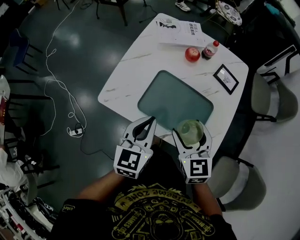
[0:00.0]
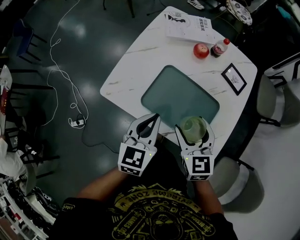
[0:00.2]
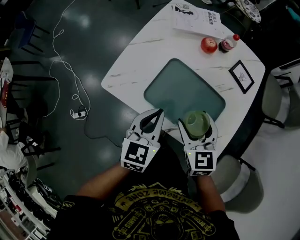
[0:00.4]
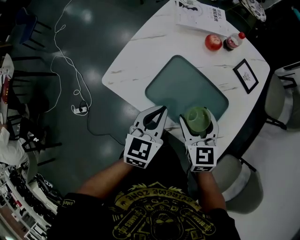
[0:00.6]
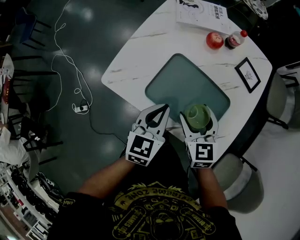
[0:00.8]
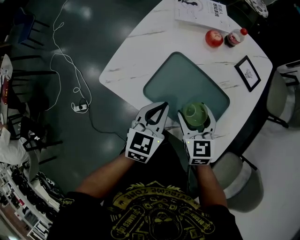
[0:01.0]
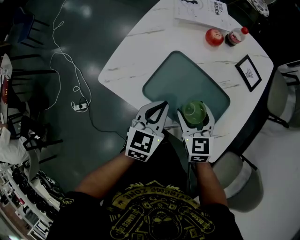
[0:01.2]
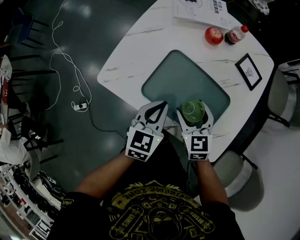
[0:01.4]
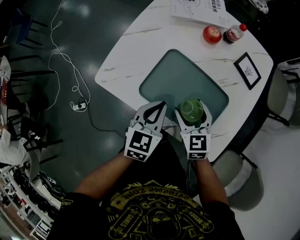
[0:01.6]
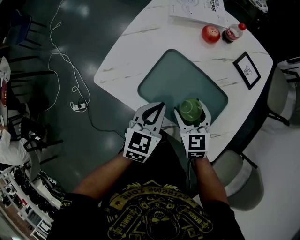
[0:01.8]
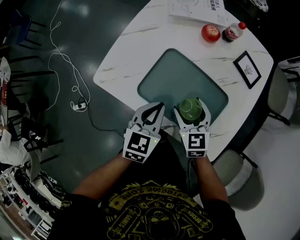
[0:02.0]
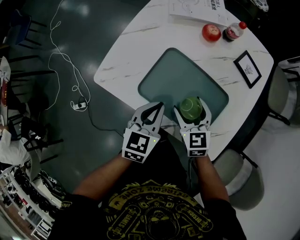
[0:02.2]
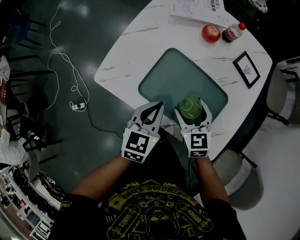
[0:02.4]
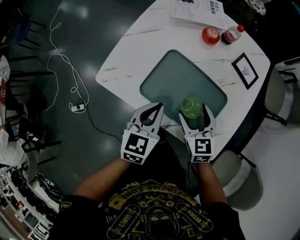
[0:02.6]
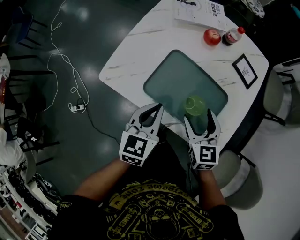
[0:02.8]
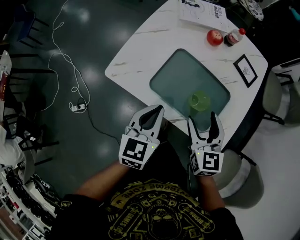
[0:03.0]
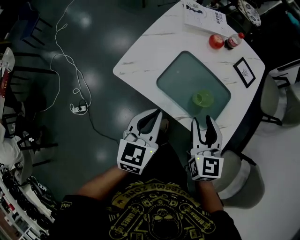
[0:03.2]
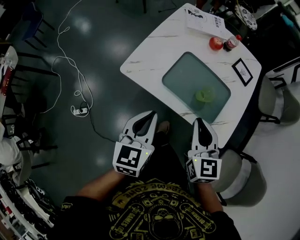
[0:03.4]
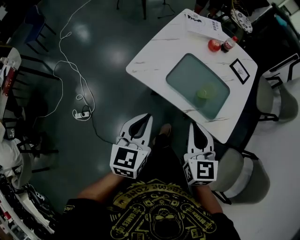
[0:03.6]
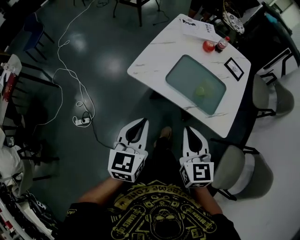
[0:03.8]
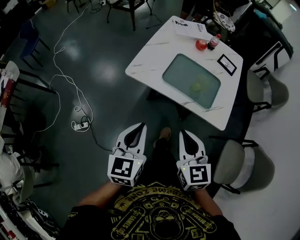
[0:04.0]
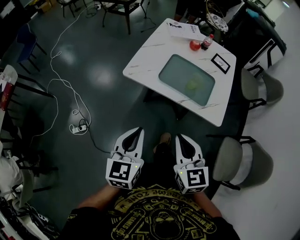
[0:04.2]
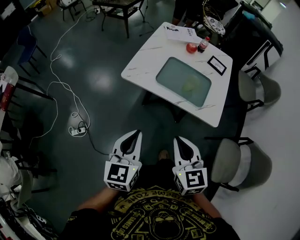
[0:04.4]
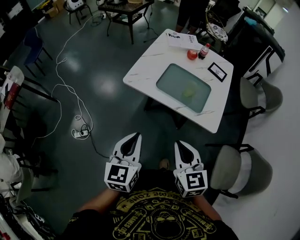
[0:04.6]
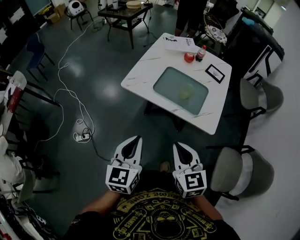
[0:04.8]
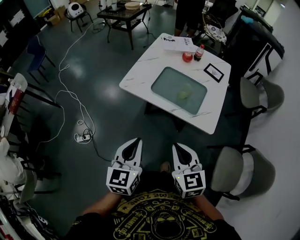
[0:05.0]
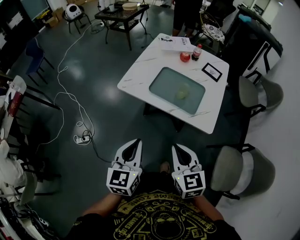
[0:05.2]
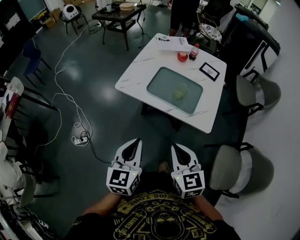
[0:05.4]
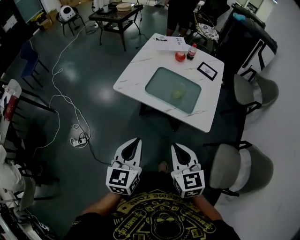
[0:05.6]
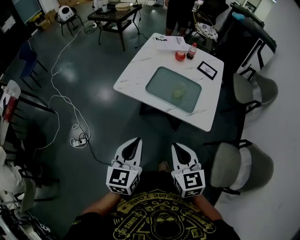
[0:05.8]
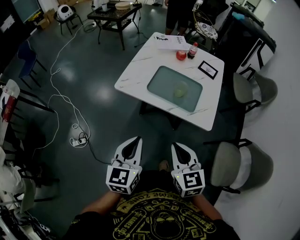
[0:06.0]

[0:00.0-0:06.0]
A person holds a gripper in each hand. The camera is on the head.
0:00.0 to 0:01.6: The grippers both shift downward by approximately 10 cm.
0:01.6 to 0:03.0: The grippers both shift upward and backward by about 10 cm.
0:03.0 to 0:04.4: The right gripper shifts about 30 cm backward and to the left, and closes up, while the left gripper travels backward, to the left and upward by about 30 cm.

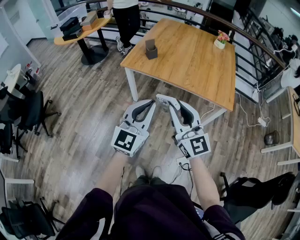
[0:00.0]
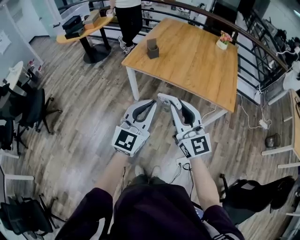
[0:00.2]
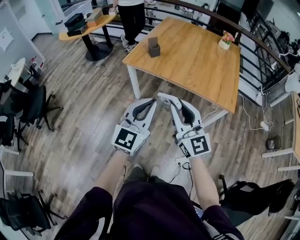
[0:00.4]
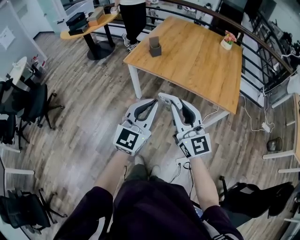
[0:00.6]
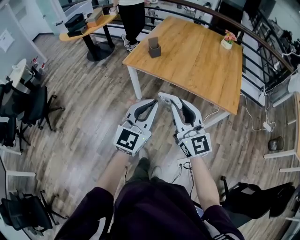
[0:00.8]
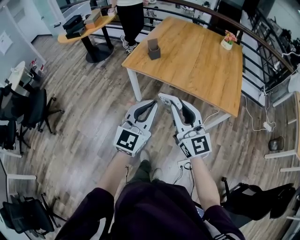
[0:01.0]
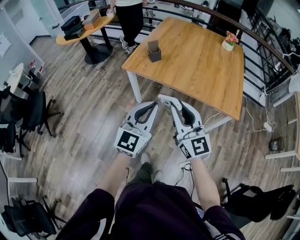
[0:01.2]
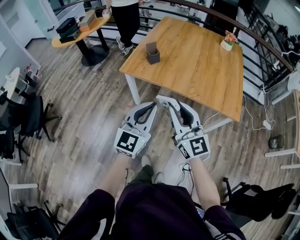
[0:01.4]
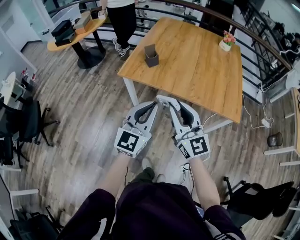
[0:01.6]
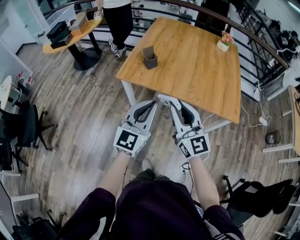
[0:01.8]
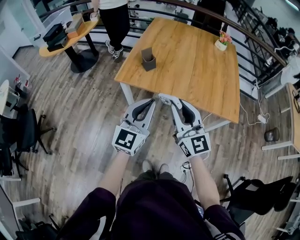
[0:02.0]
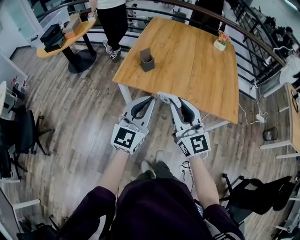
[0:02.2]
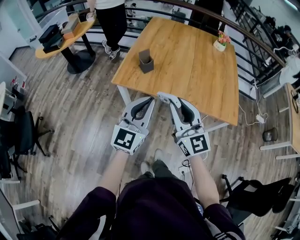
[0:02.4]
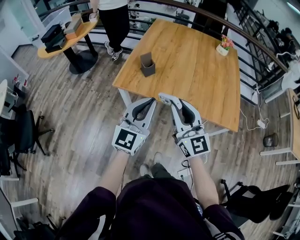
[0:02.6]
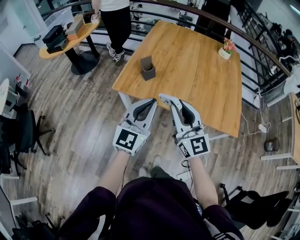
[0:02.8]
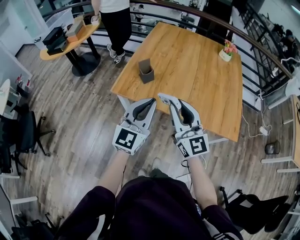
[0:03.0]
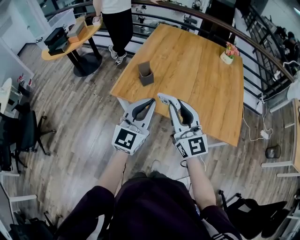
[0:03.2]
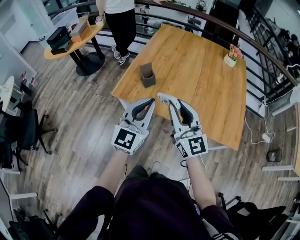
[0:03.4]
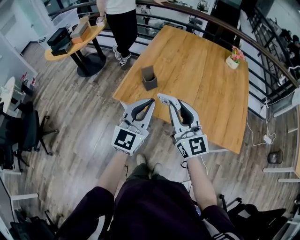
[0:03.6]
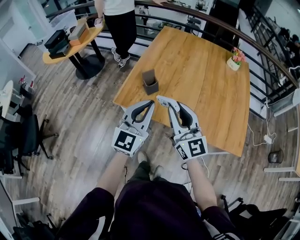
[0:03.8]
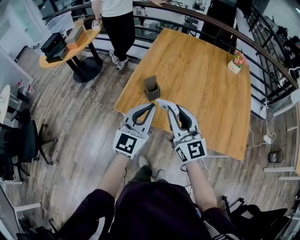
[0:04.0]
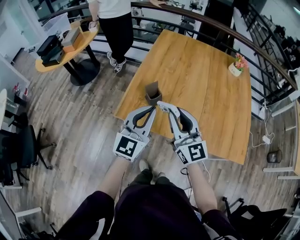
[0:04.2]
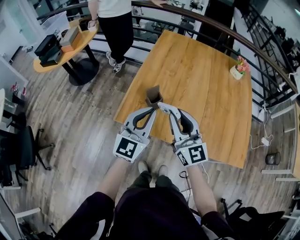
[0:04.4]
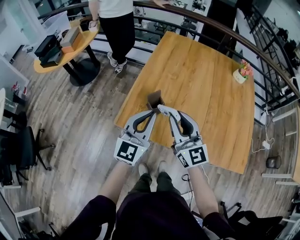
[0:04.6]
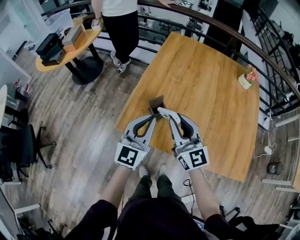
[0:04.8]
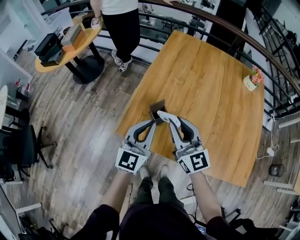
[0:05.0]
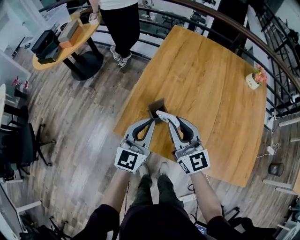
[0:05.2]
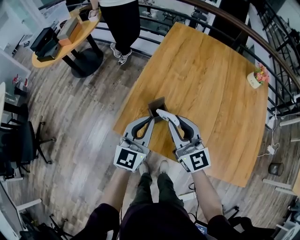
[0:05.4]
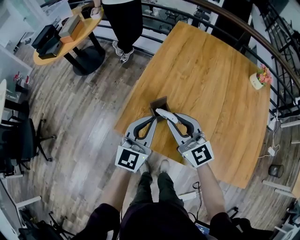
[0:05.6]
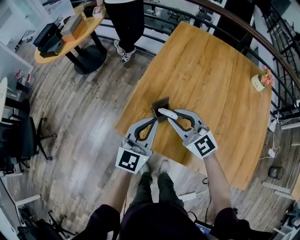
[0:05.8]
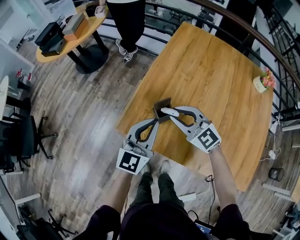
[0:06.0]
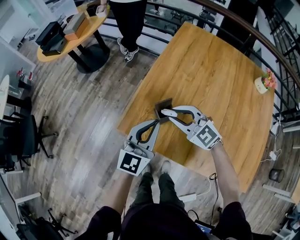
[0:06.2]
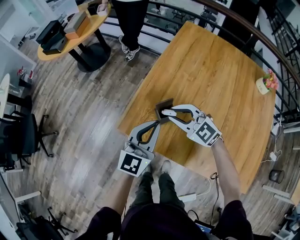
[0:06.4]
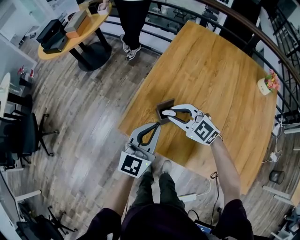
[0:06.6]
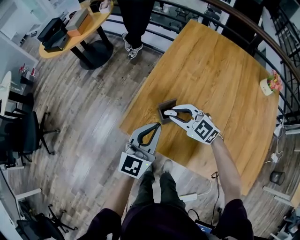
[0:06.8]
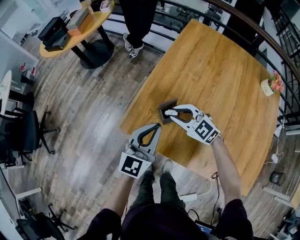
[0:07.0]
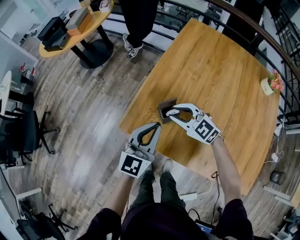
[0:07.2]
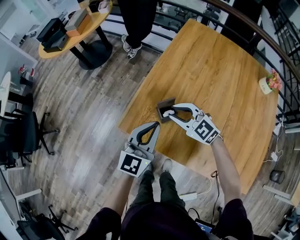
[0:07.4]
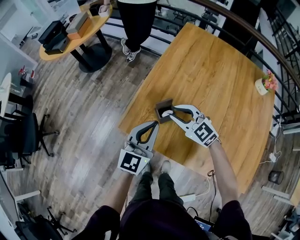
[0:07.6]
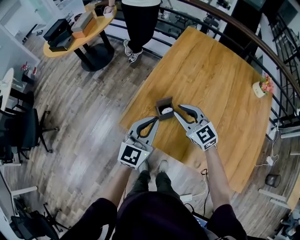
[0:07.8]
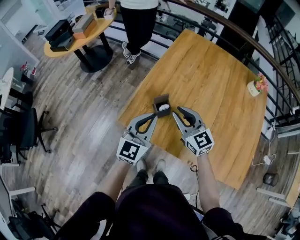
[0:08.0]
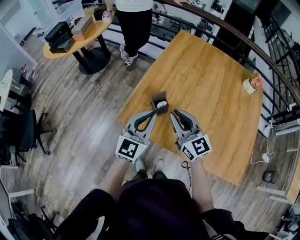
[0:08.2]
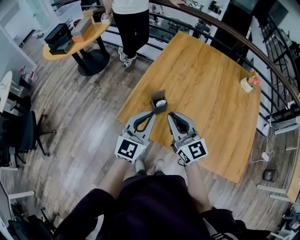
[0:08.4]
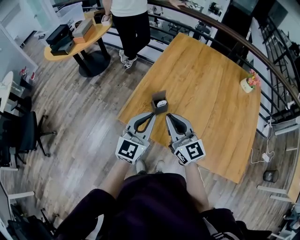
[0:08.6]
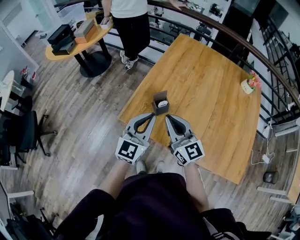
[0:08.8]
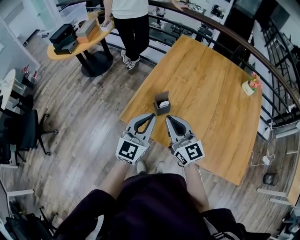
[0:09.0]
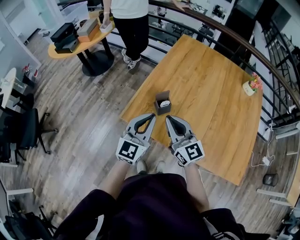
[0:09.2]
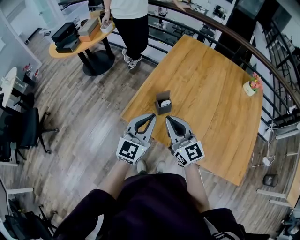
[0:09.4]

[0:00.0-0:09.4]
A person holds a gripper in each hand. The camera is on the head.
0:00.0 to 0:01.6: Both grippers move forward, approximately 15 cm.
0:01.6 to 0:03.2: The two grippers go approximately 20 cm forward.
0:03.2 to 0:04.8: Both grippers travel together forward, some 25 cm.
0:04.8 to 0:06.2: The left gripper is displaced downward by approximately 5 cm, while the right gripper shifts approximately 15 cm downward and forward, and rotates about 50 degrees.
0:06.2 to 0:07.8: The right gripper moves about 5 cm downward and comes back.
0:07.8 to 0:09.4: The left gripper shifts roughly 10 cm backward. Meanwhile the right gripper shifts approximately 15 cm backward and upward, and swivels approximately 30 degrees.

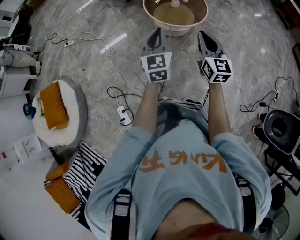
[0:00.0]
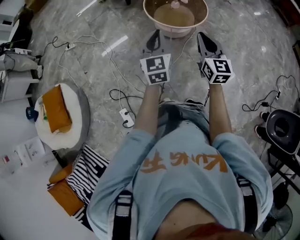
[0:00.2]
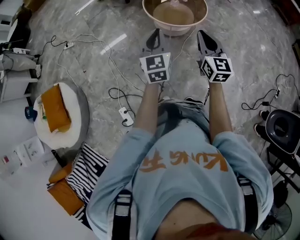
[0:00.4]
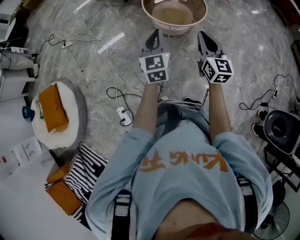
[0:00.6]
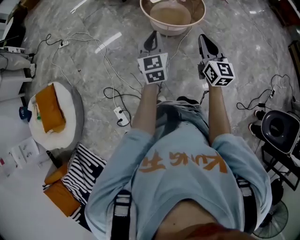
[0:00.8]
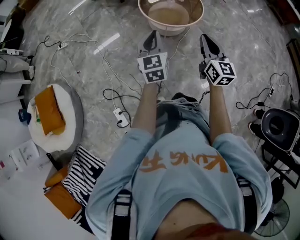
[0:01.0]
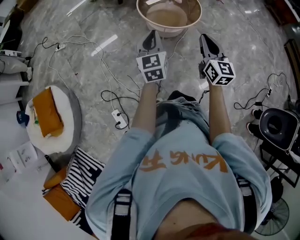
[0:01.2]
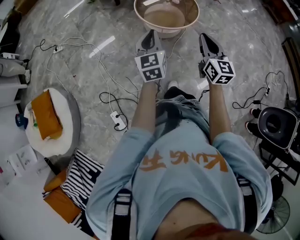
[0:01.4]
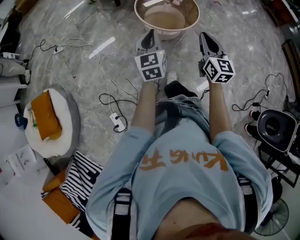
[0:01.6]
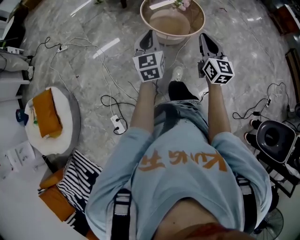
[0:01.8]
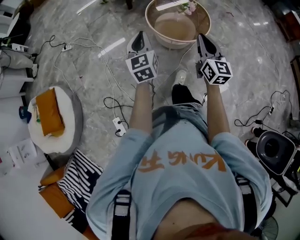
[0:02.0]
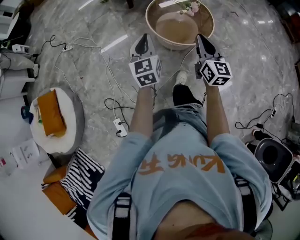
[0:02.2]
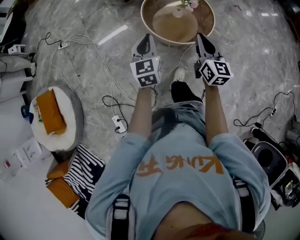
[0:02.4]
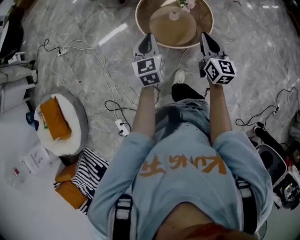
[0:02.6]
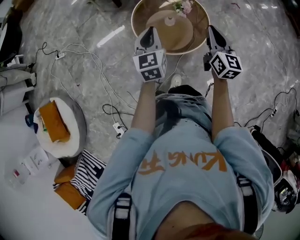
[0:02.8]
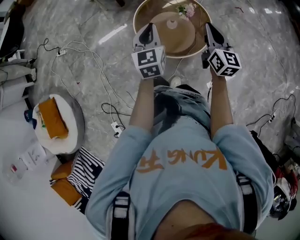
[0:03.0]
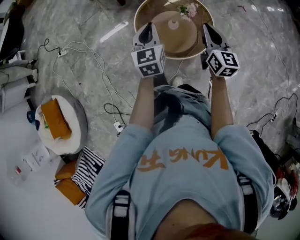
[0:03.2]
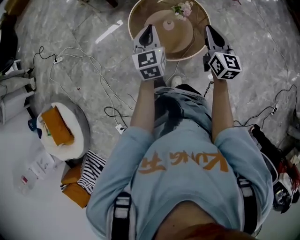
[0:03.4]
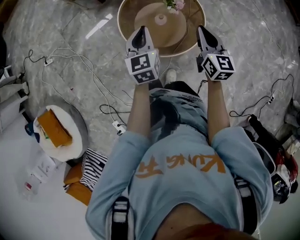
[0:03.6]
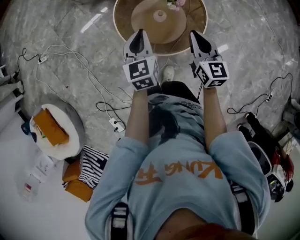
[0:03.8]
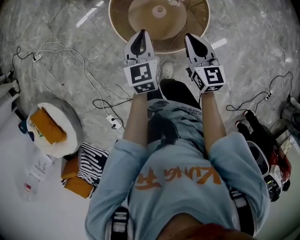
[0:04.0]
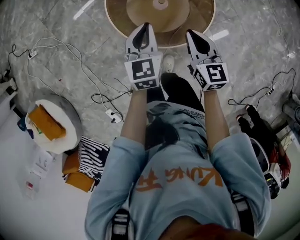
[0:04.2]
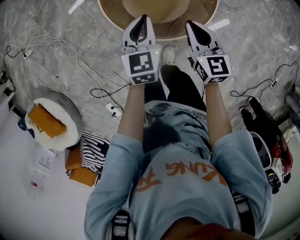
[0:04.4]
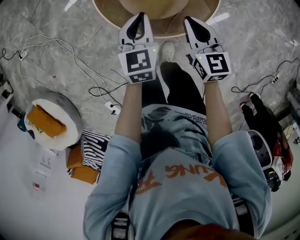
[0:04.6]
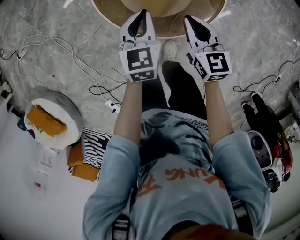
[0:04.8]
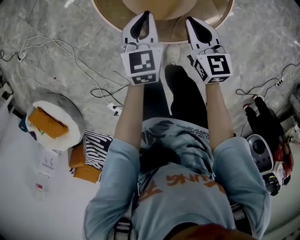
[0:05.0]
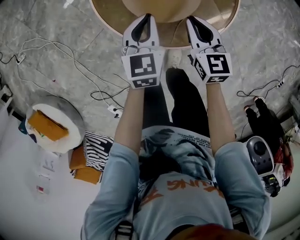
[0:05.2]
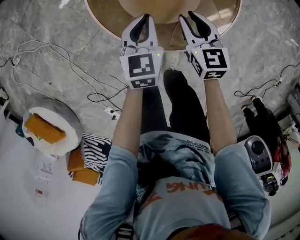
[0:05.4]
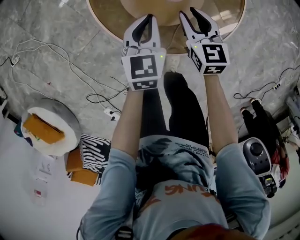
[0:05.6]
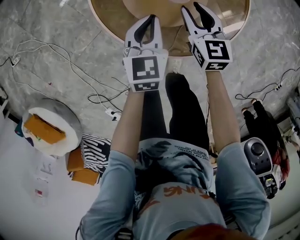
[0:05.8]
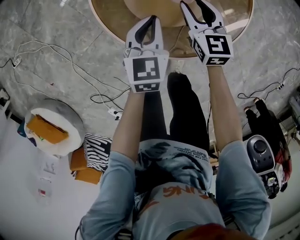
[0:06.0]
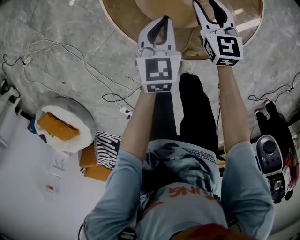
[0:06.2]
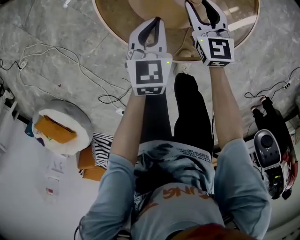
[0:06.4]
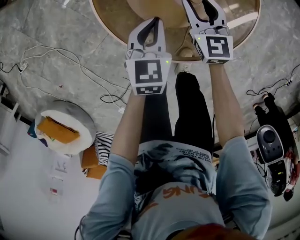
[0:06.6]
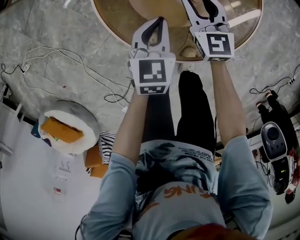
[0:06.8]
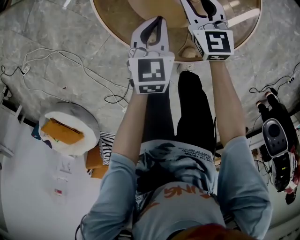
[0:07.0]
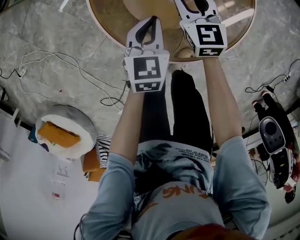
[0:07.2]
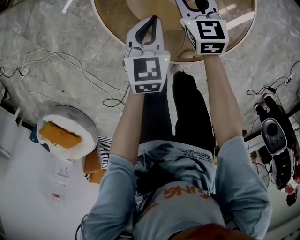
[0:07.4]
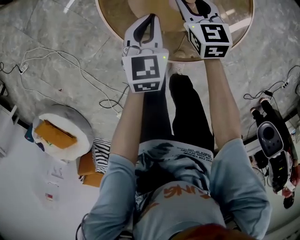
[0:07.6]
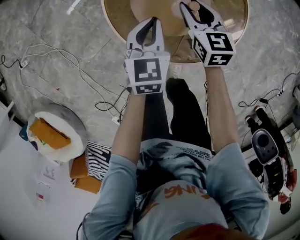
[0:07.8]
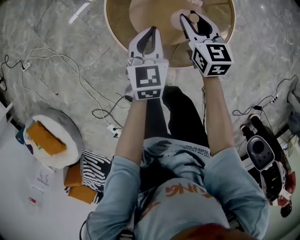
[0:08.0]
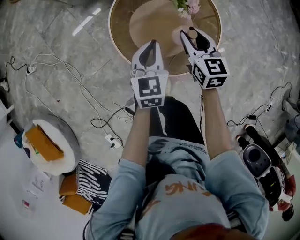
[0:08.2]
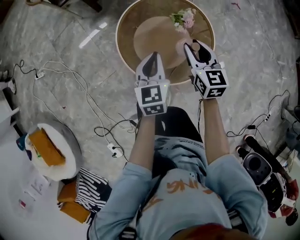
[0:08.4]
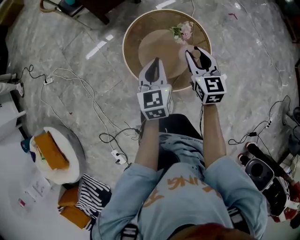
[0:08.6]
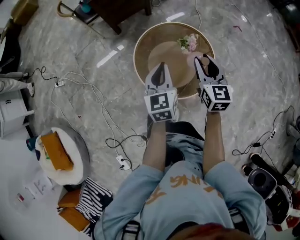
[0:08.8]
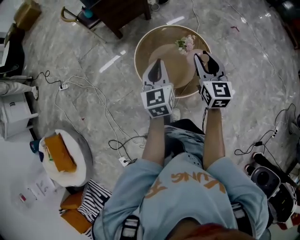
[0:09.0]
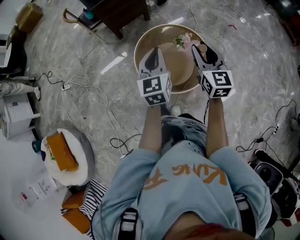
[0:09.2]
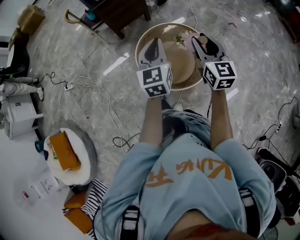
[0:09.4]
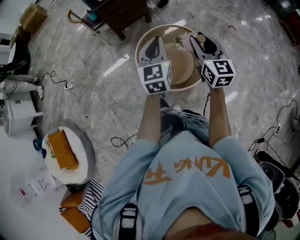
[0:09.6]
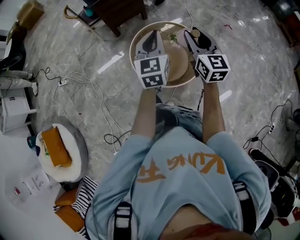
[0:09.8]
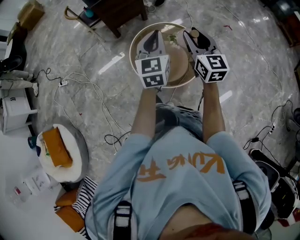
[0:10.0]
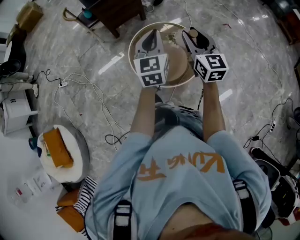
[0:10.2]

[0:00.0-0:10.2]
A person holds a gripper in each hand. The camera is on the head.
0:00.0 to 0:01.4: The grippers stay close to where they were, moving slightly.
0:01.4 to 0:03.0: Both grippers are carried forward, roughly 40 cm.
0:03.0 to 0:04.4: The left gripper shifts approximately 25 cm downward and forward. The right gripper shifts some 25 cm downward, and swivels some 20 degrees.
0:04.4 to 0:05.8: The right gripper is displaced downward and forward by some 25 cm, and opens. The left gripper is displaced downward by roughly 20 cm.
0:05.8 to 0:07.2: The right gripper moves forward, approximately 5 cm.
0:07.2 to 0:08.8: The grippers both shift upward by approximately 40 cm. The left gripper turns by approximately 30 degrees.
0:08.8 to 0:10.2: Both grippers travel together upward, roughly 15 cm.
